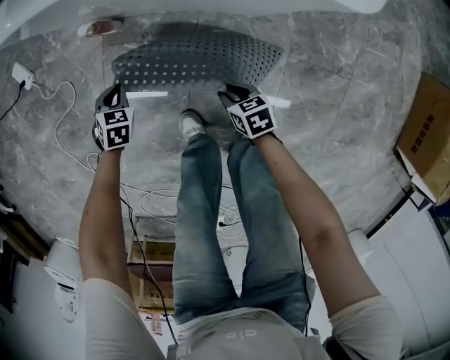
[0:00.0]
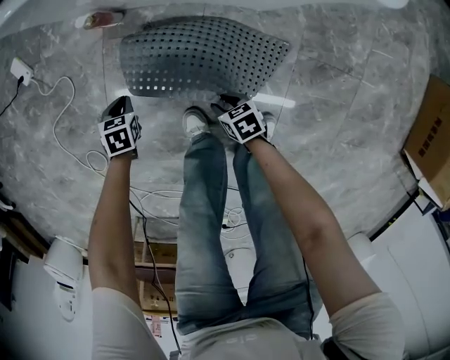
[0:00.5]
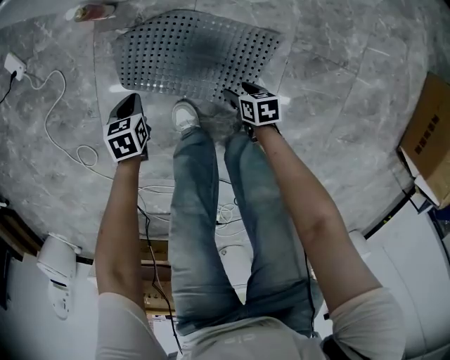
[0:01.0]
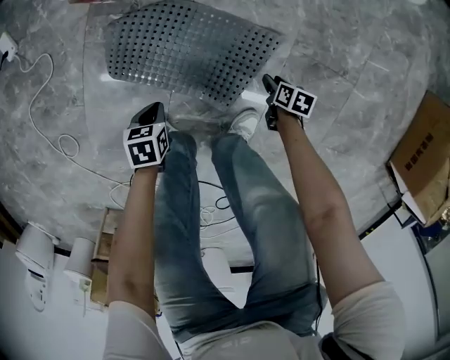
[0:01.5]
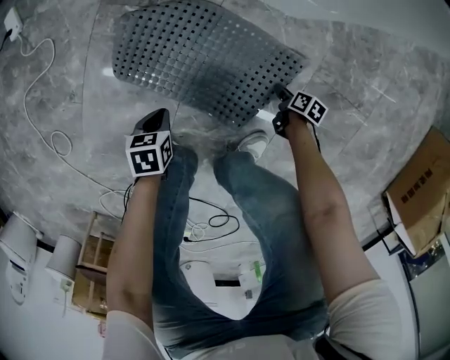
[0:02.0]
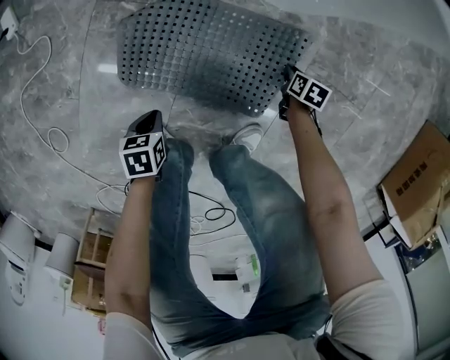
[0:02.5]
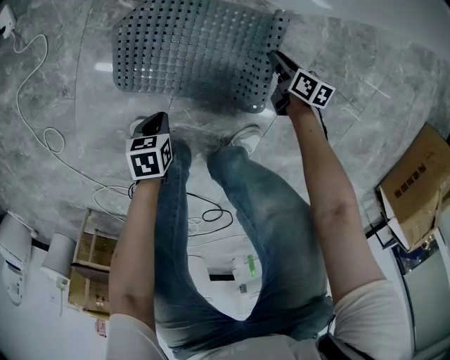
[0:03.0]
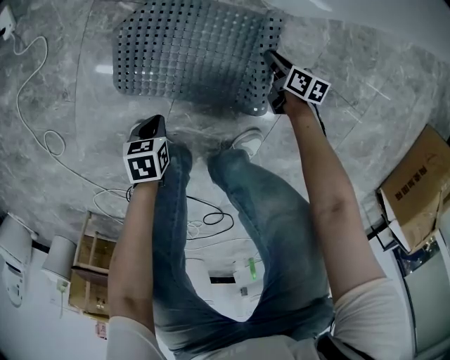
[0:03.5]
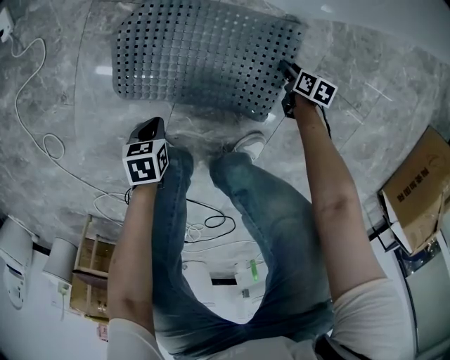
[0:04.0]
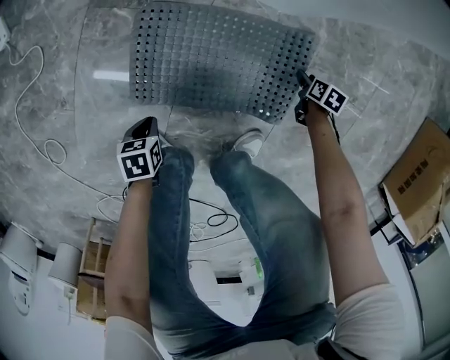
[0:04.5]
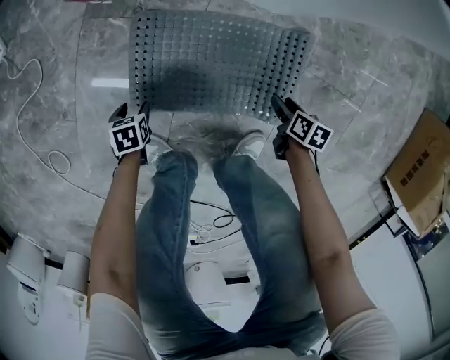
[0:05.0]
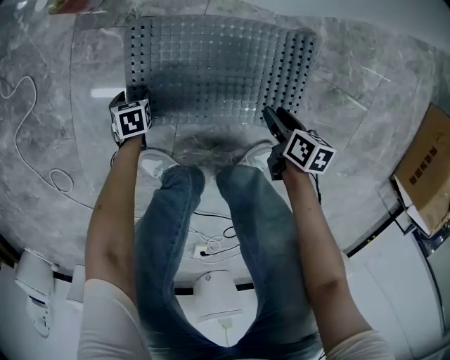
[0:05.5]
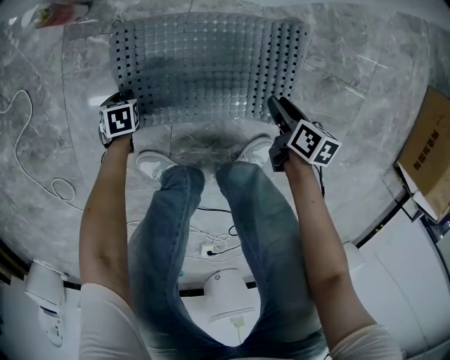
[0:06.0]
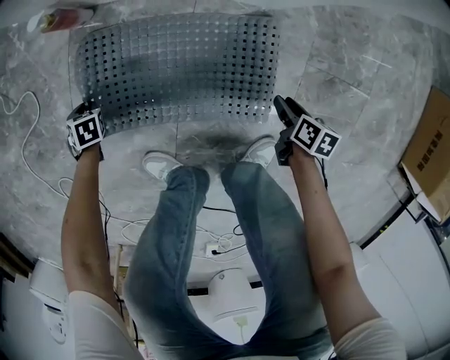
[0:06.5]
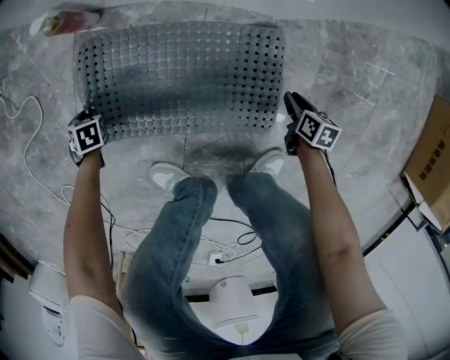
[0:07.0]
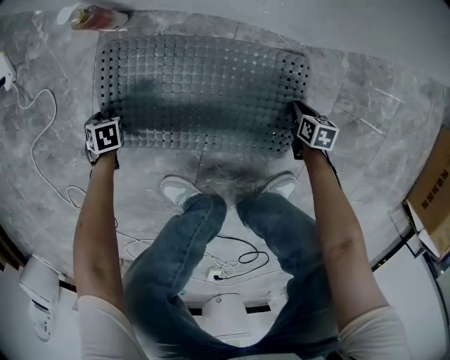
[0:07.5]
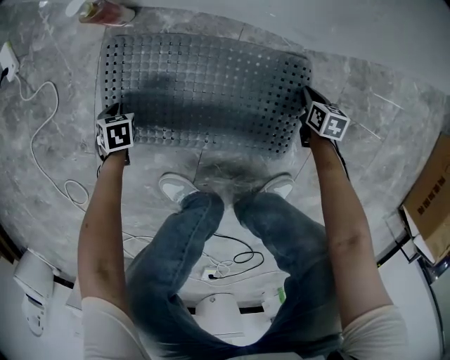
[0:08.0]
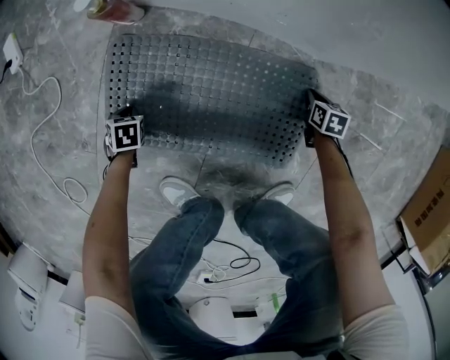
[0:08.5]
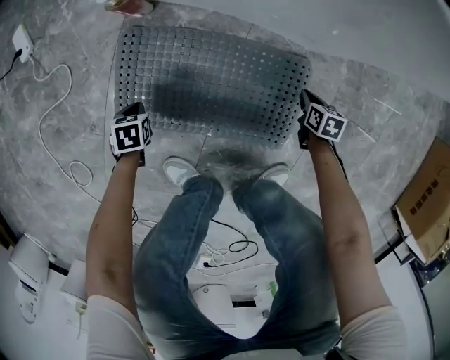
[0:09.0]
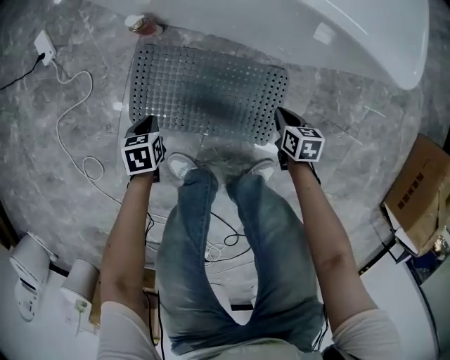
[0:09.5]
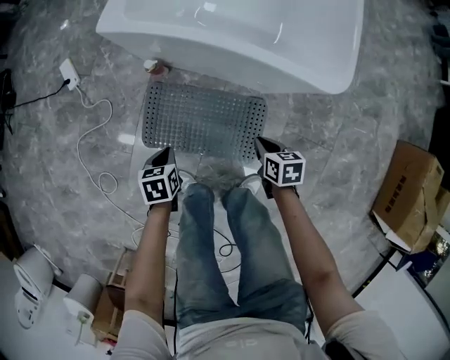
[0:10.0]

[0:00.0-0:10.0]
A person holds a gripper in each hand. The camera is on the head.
0:00.0 to 0:02.0: The right gripper travels downward by some 25 cm, and rotates around the line of its fingers by some 40 degrees, clockwise from behind. The left gripper changes place by some 25 cm, and rotates approximately 40 degrees.
0:02.0 to 0:04.0: The right gripper moves forward, approximately 10 cm, and turns by about 20 degrees.
0:04.0 to 0:06.0: The left gripper shifts by roughly 20 cm, rotates some 20 degrees, and opens its fingers, while the right gripper goes some 10 cm upward.
0:06.0 to 0:08.0: The right gripper goes approximately 15 cm downward, turns by about 30 degrees, and closes its fingers. The left gripper ends up approximately 15 cm from where it was.
0:08.0 to 0:10.0: Both grippers move upward, roughly 50 cm. The left gripper swivels approximately 30 degrees.

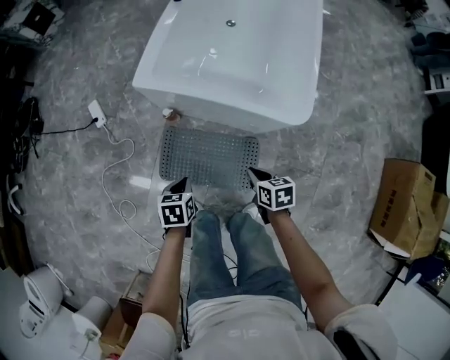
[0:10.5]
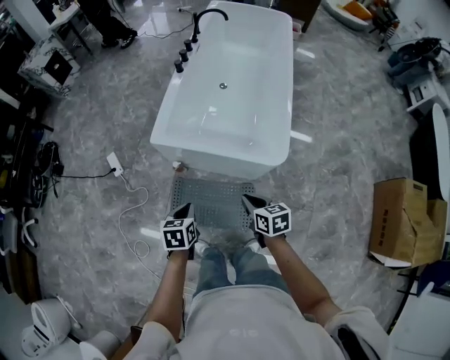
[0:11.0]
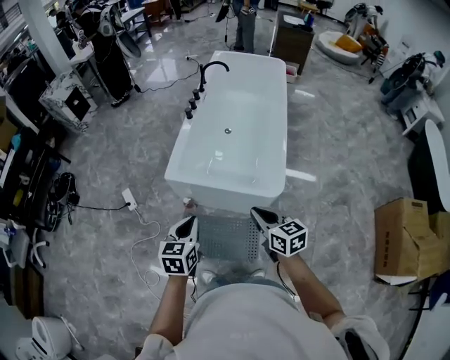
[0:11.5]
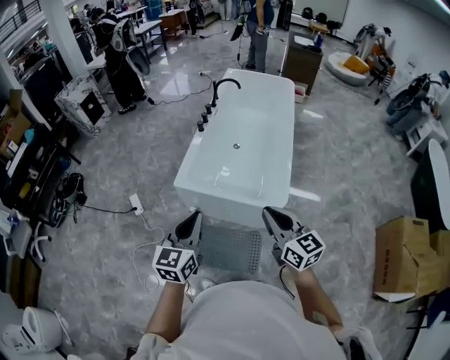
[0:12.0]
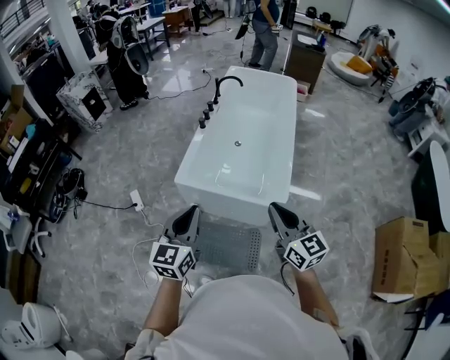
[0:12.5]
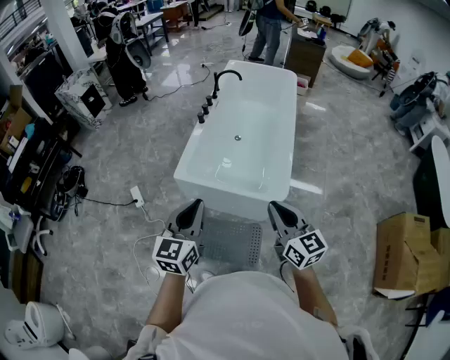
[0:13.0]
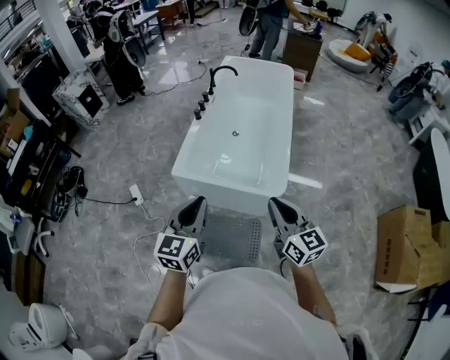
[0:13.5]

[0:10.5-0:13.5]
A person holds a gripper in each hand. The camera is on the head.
0:10.5 to 0:12.0: The two grippers go about 50 cm upward. The right gripper angles its fingers upward, by approximately 50 degrees. The left gripper tilts its fingers about 50 degrees upward.
0:12.0 to 0:13.5: There are only small adjustments of the grippers.

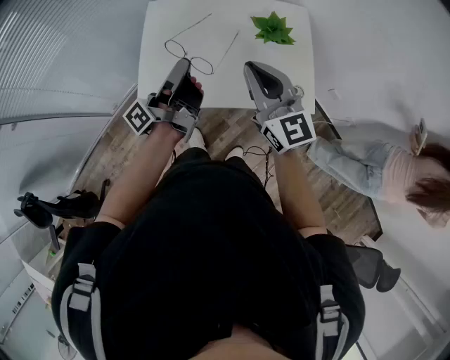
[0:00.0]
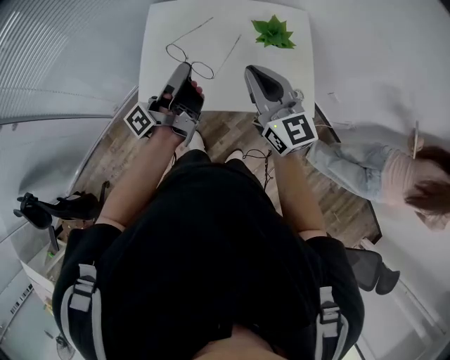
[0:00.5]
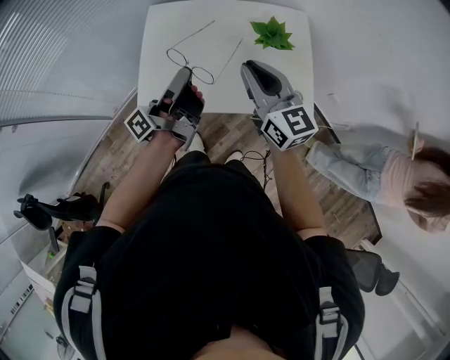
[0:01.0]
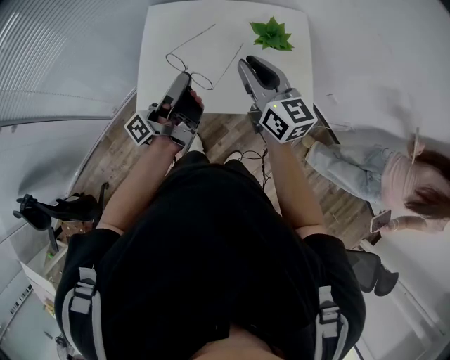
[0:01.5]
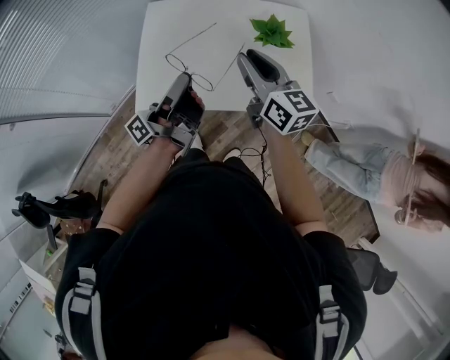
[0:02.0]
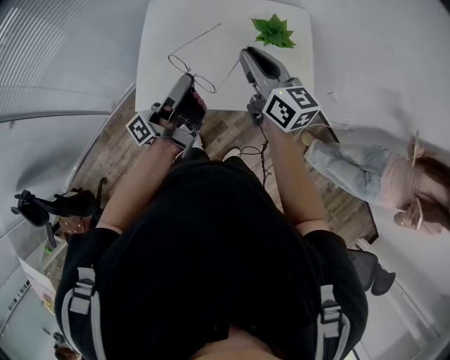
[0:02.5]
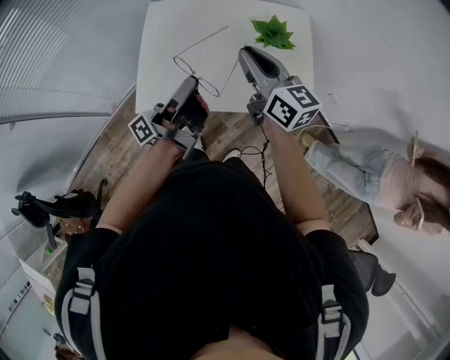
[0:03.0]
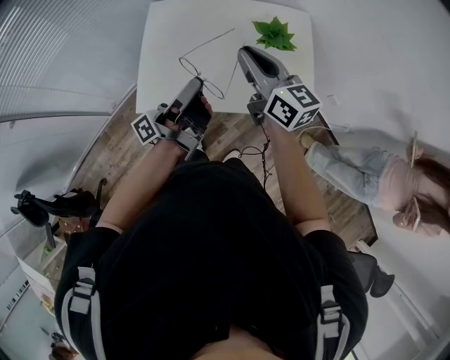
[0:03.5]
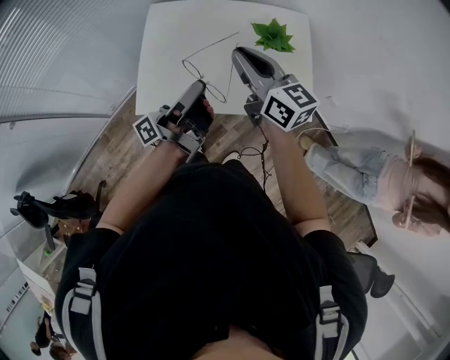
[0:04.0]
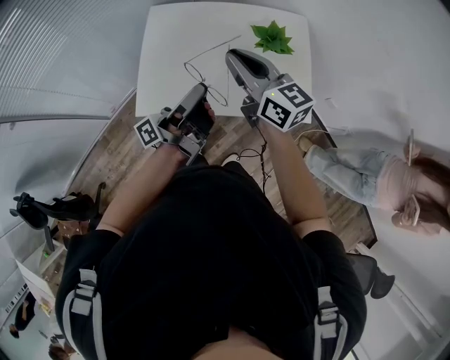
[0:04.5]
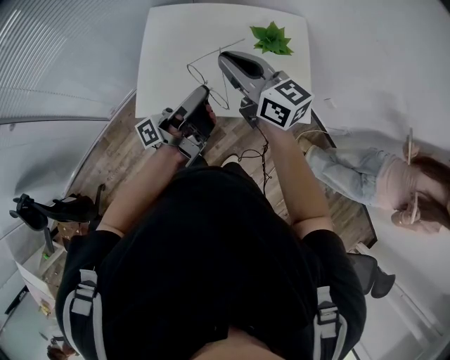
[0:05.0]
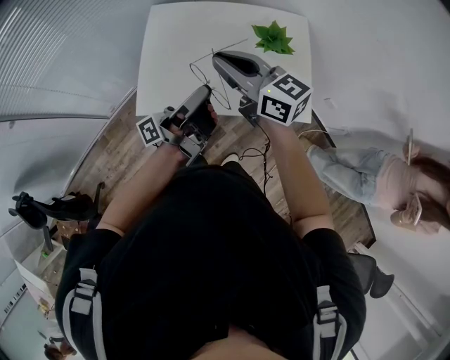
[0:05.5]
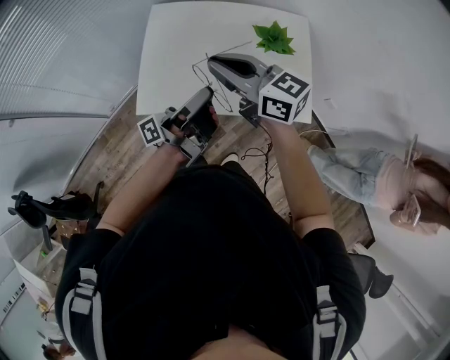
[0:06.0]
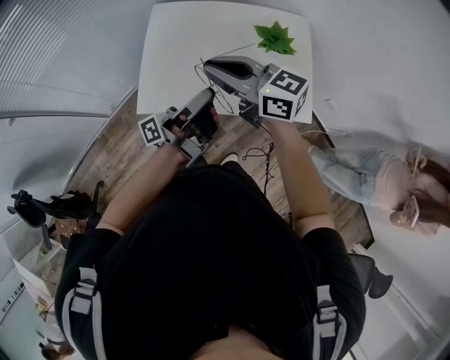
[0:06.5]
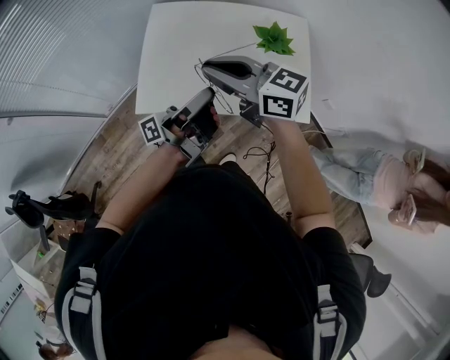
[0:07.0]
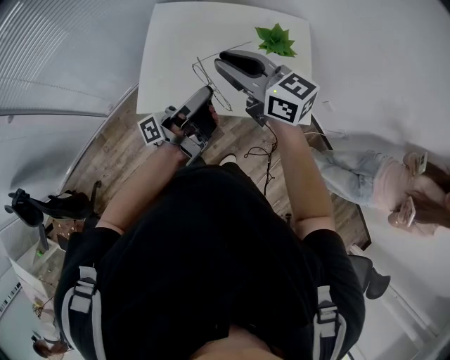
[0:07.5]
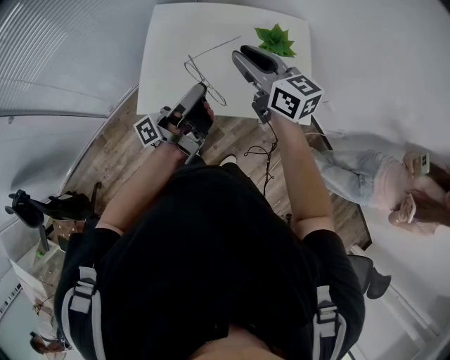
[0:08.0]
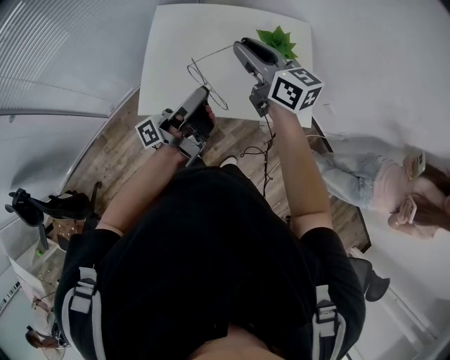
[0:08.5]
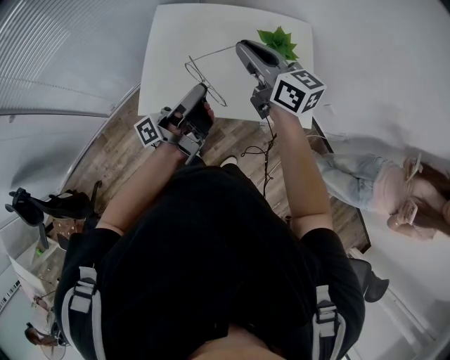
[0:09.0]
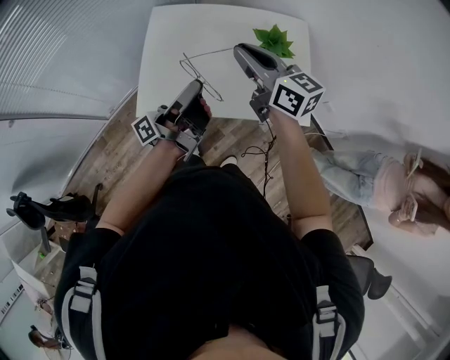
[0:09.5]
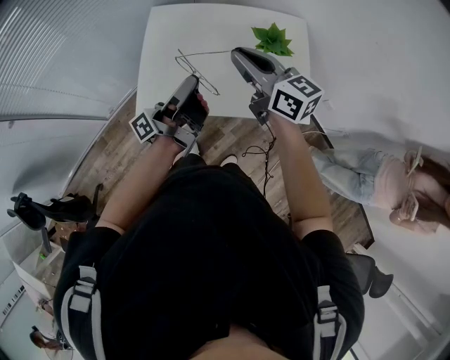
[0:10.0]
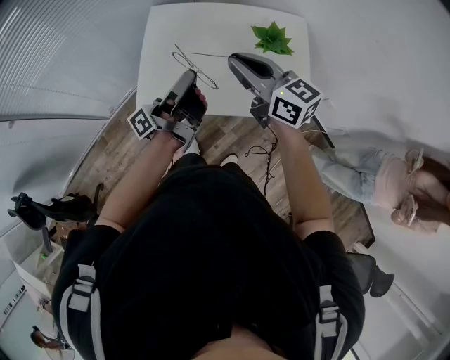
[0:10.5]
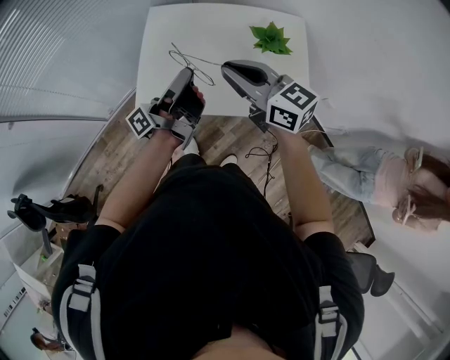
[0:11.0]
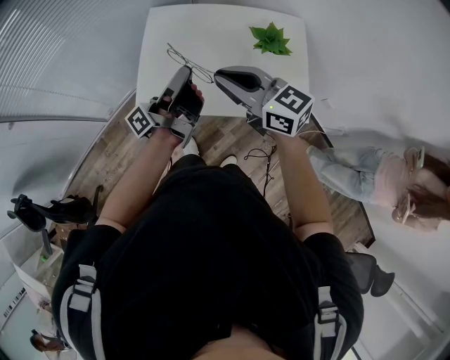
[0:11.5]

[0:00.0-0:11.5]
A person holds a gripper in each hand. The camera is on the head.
0:00.0 to 0:02.0: The right gripper moves approximately 5 cm, swivels approximately 20 degrees, and opens its fingers.
0:04.0 to 0:06.0: The right gripper ends up about 10 cm from where it was, and swivels some 20 degrees.
0:07.5 to 0:09.5: The right gripper ends up some 5 cm from where it was.
0:09.5 to 0:11.5: The right gripper changes place by roughly 10 cm.

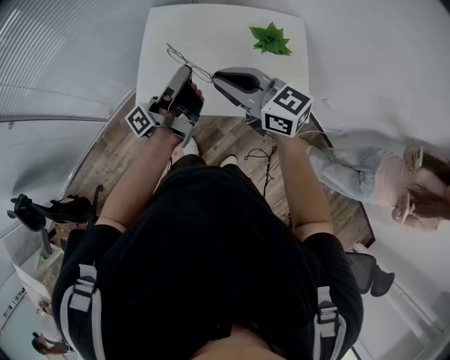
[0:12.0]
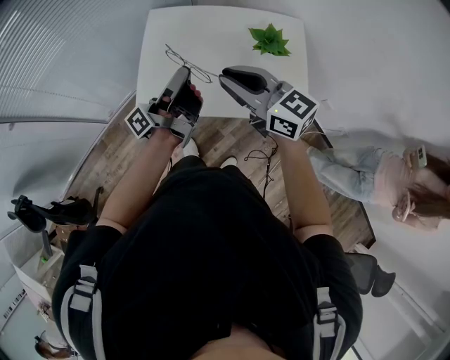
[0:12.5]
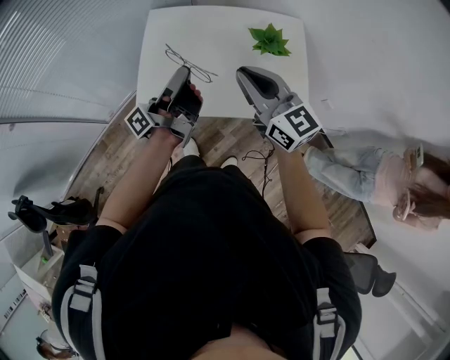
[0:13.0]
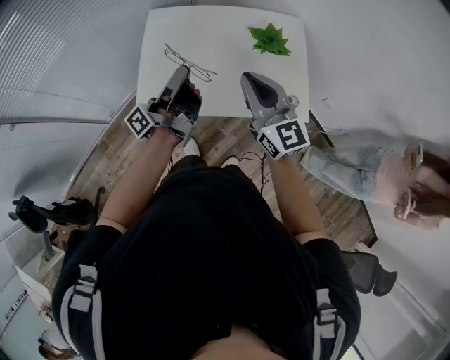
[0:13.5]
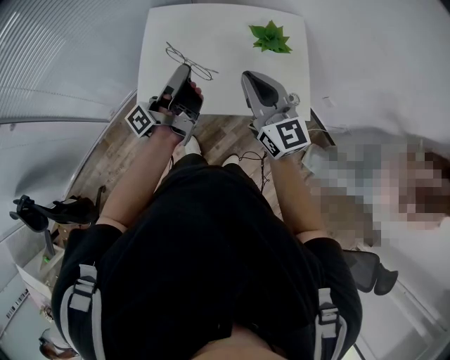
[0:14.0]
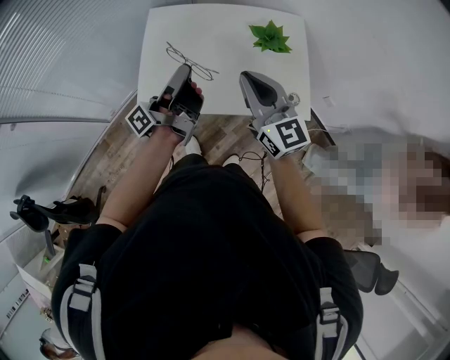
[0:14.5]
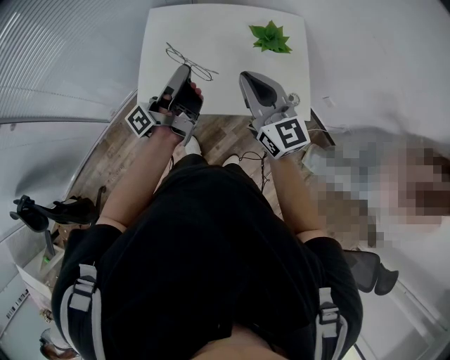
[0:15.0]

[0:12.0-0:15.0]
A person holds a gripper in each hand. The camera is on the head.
0:12.0 to 0:13.5: The right gripper shifts by about 5 cm, and changes its angle by some 30 degrees.
